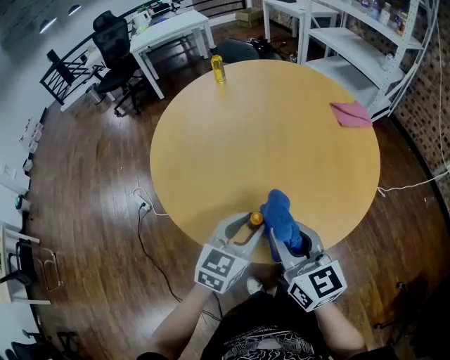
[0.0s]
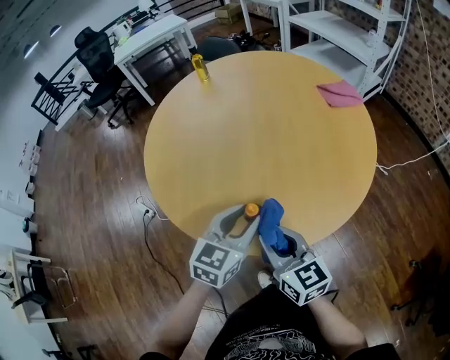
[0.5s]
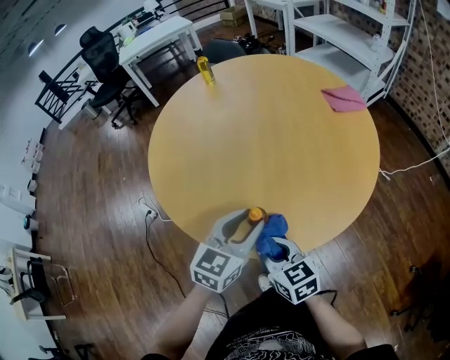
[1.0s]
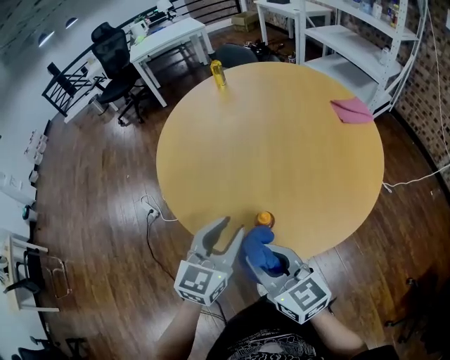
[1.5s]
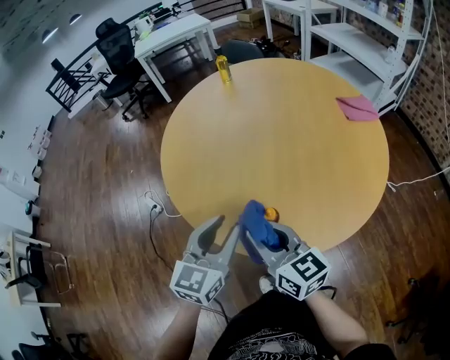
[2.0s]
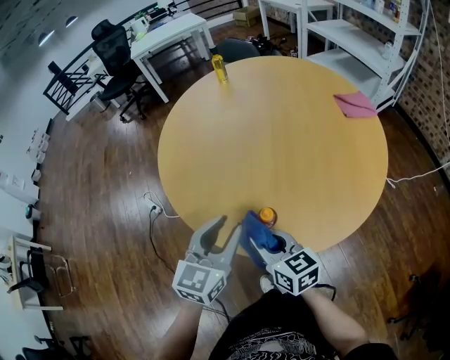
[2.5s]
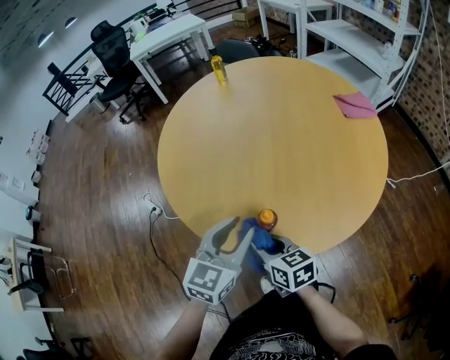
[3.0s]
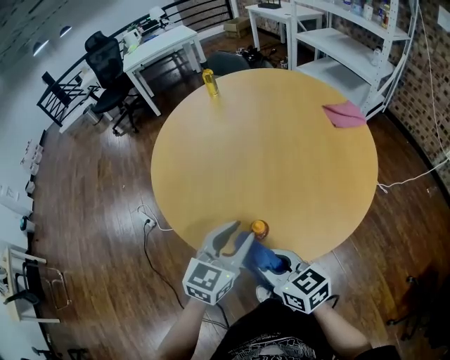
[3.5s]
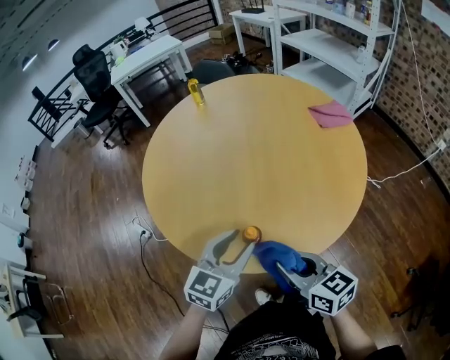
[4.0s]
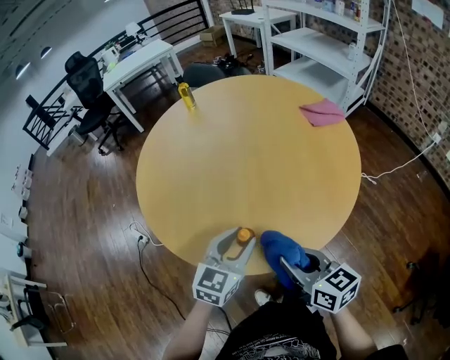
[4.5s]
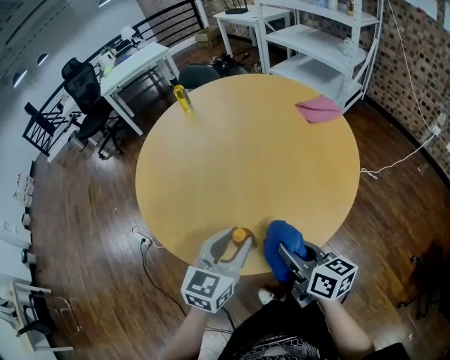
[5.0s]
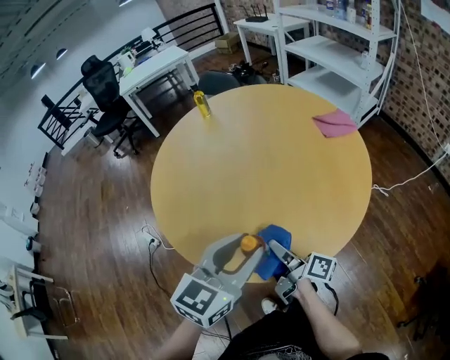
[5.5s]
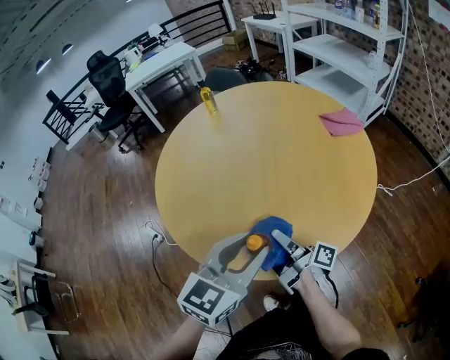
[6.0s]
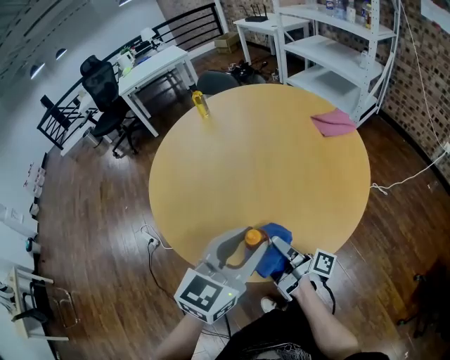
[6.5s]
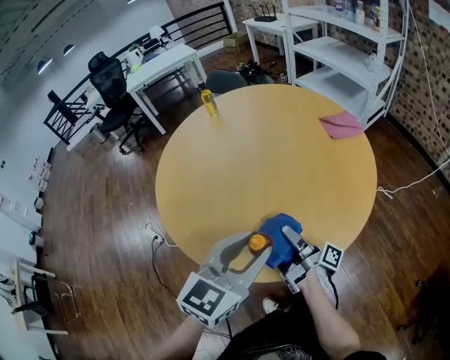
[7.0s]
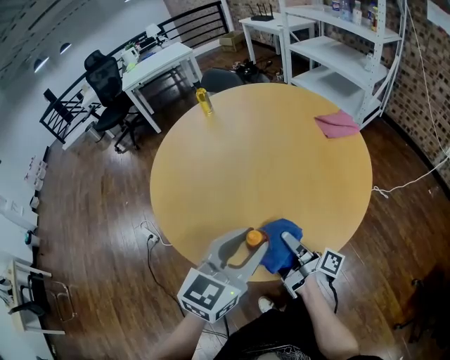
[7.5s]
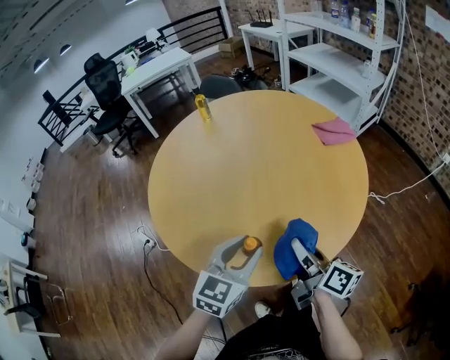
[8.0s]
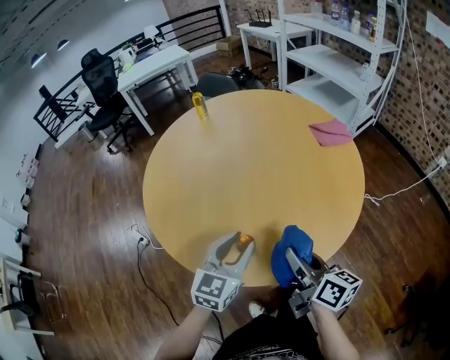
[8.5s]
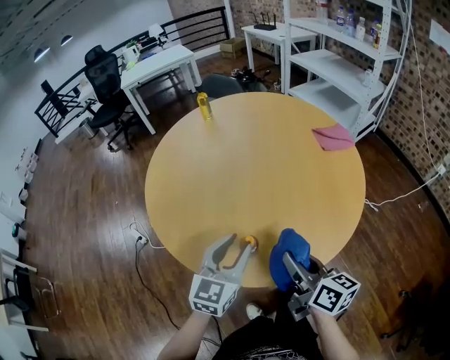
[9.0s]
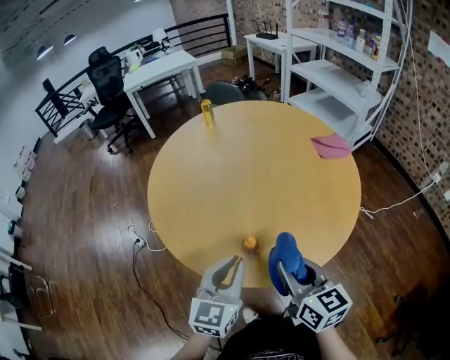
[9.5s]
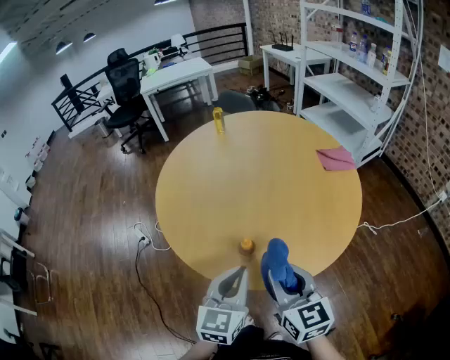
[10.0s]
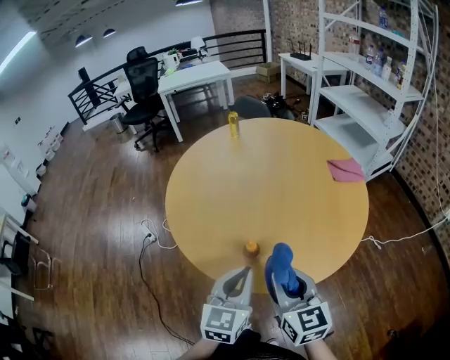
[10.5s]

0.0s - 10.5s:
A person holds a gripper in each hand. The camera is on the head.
0.0s - 2.0s: Both grippers travel together to the left, about 10 cm. The right gripper goes downward and returns, roughly 15 cm each way.
2.0s - 4.0s: The left gripper heads to the right, covering about 10 cm; the right gripper moves to the right and backward, about 10 cm, and reaches approximately 10 cm downward, then returns.
4.0s - 6.5s: The left gripper travels upward by approximately 10 cm. Meanwhile the right gripper moves forward and downward, approximately 10 cm, and rotates around the line of its fingers by some 70 degrees, clockwise from behind.
6.5s - 8.5s: The right gripper goes roughly 10 cm upward and to the right, and twists roughly 50 degrees counterclockwise, seen from behind. Meanwhile the left gripper shifts approximately 10 cm downward.
8.5s - 10.5s: The left gripper shifts about 10 cm backward, and closes up, while the right gripper shifts approximately 5 cm upward, and rolls counterclockwise, seen from behind, by about 40 degrees.

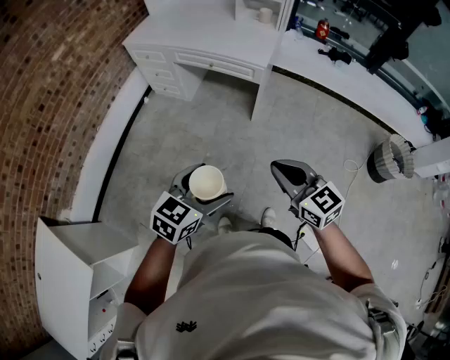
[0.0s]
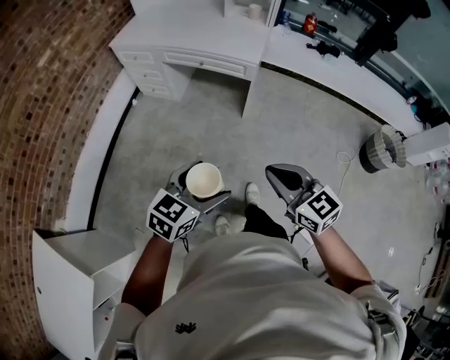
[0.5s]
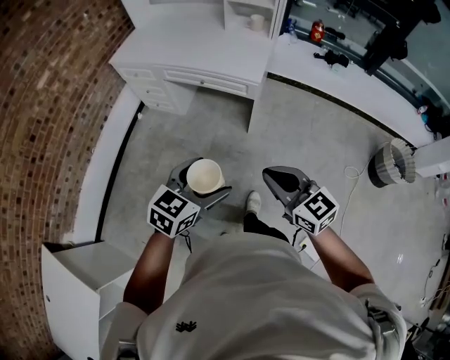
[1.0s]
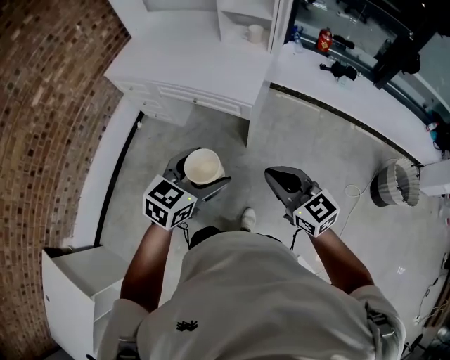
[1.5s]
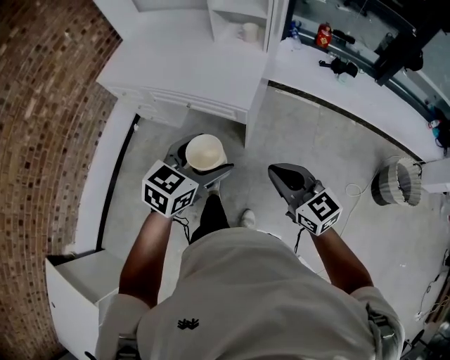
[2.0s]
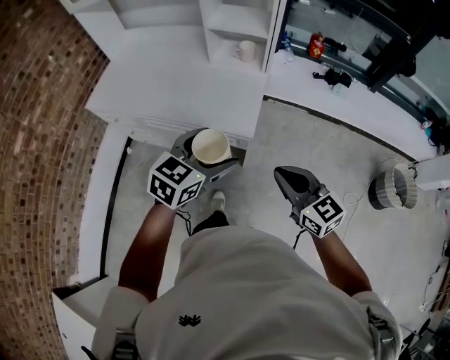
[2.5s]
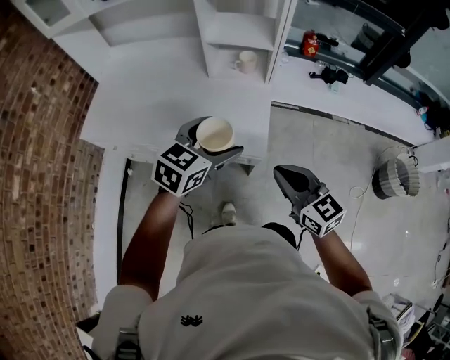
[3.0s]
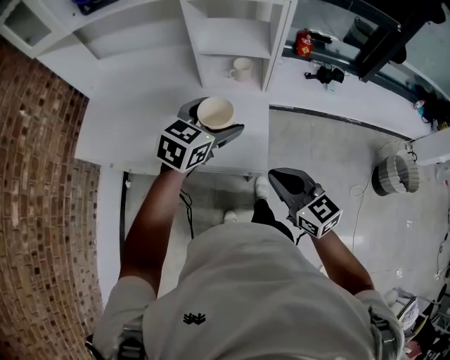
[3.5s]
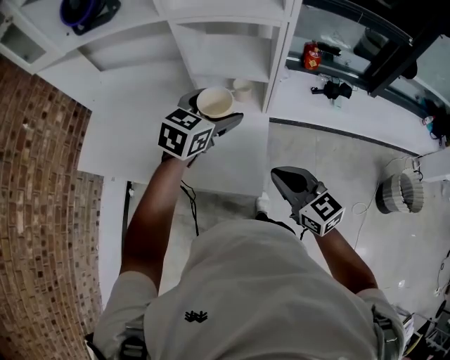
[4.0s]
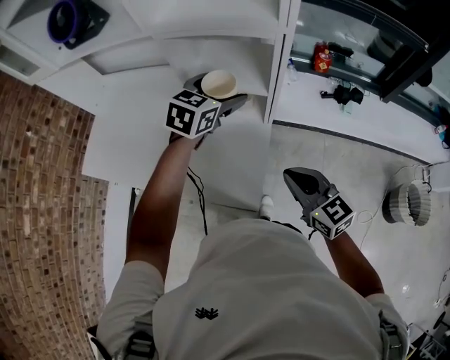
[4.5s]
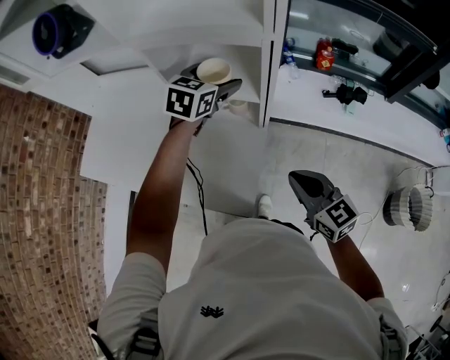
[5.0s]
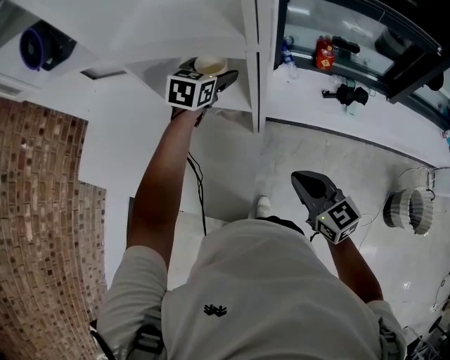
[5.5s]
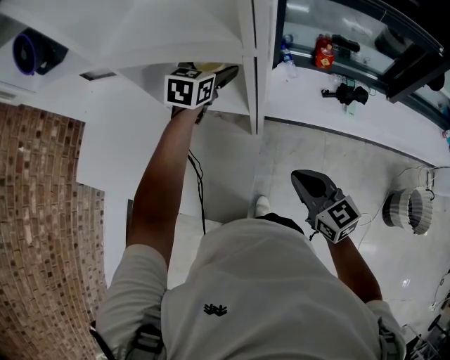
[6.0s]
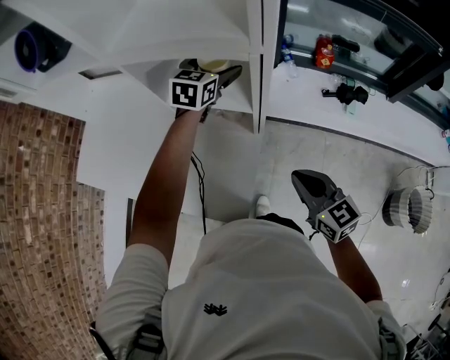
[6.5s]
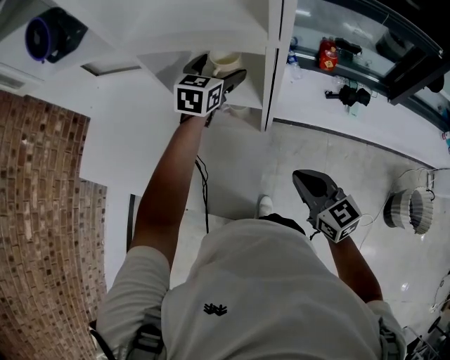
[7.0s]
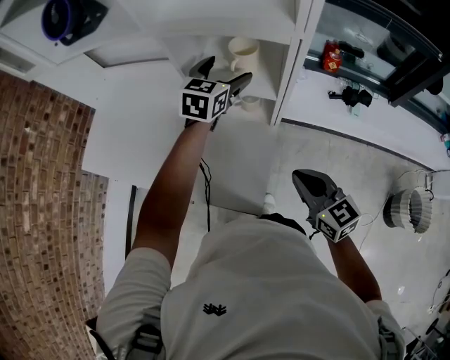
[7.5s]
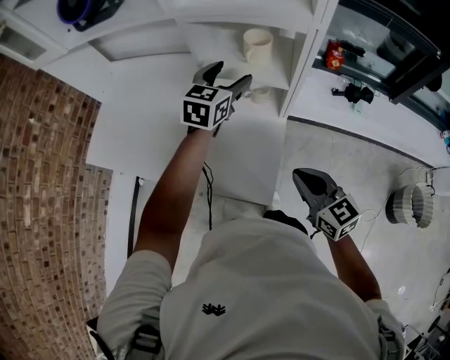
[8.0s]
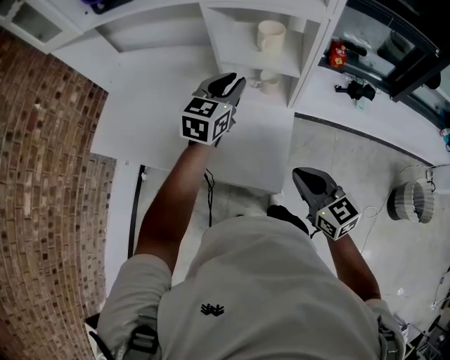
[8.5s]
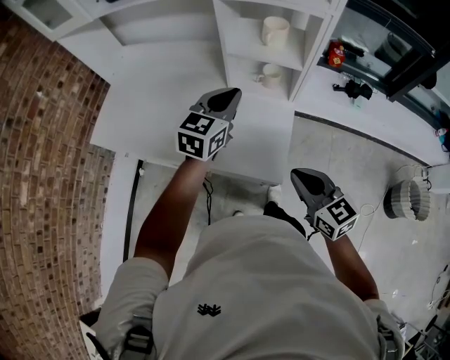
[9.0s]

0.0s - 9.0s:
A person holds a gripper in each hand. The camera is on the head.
0.0s - 2.0s: The two grippers go about 35 cm forward.
2.0s - 4.5s: The pair of grippers is taken forward, about 50 cm.
4.5s - 7.0s: The right gripper goes about 10 cm to the right and forward, while the left gripper travels forward by about 15 cm.
7.0s - 9.0s: The left gripper moves backward and to the left, about 30 cm, and closes up, while the right gripper is displaced to the left and backward by approximately 20 cm.

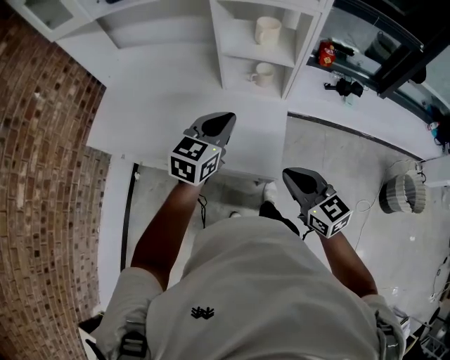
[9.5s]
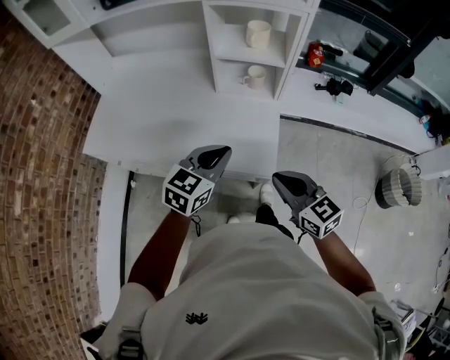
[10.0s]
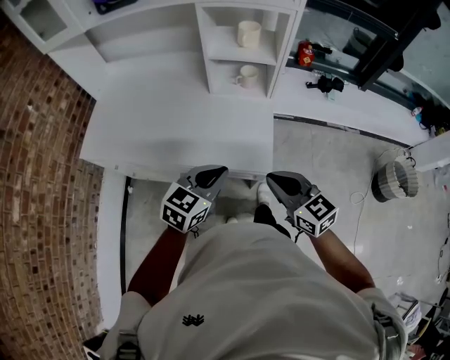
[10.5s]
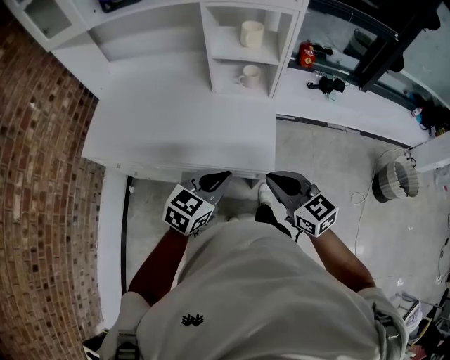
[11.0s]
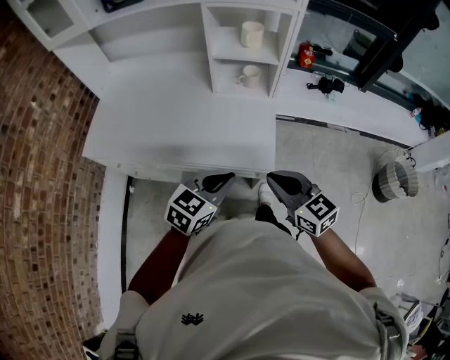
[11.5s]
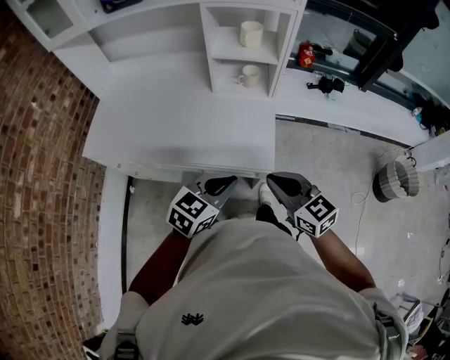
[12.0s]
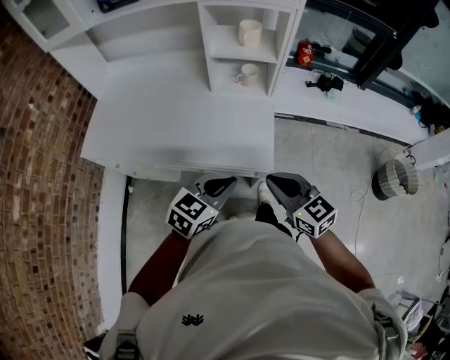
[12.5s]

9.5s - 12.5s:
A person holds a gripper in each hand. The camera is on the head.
9.5s - 11.0s: The left gripper is displaced backward by some 20 cm. The right gripper travels backward by approximately 5 cm.
11.0s - 12.5s: The grippers stay close to where they were, moving slightly.

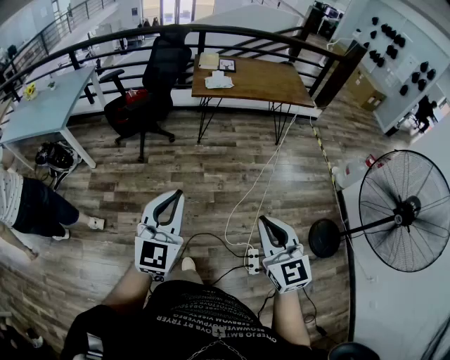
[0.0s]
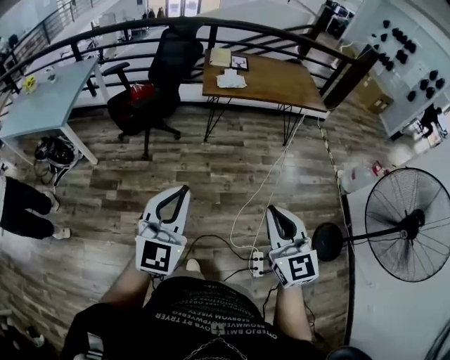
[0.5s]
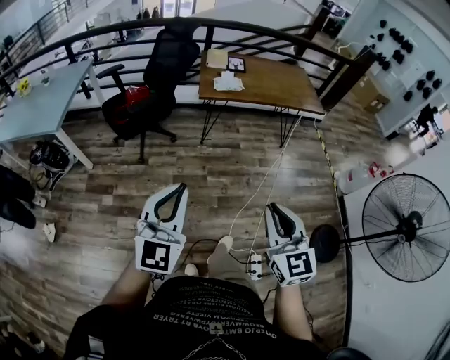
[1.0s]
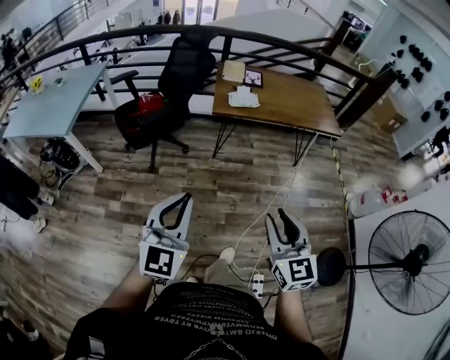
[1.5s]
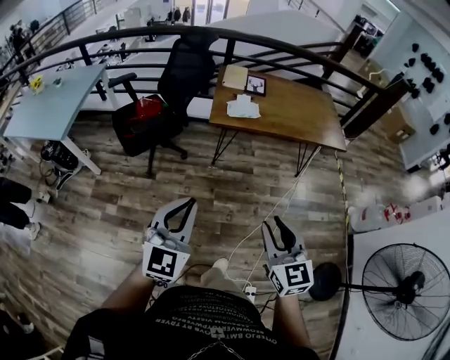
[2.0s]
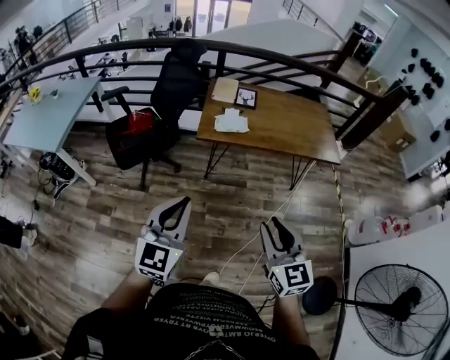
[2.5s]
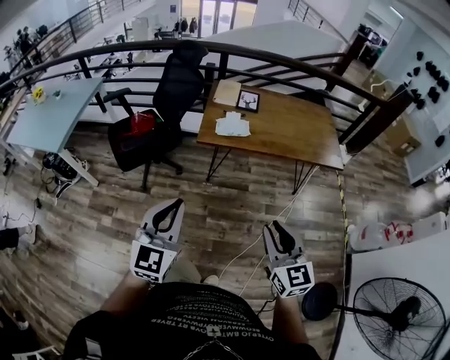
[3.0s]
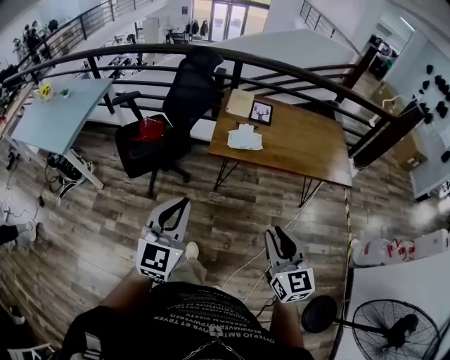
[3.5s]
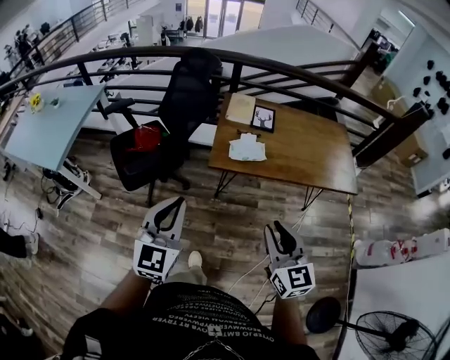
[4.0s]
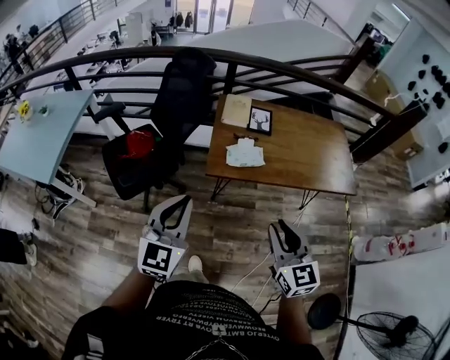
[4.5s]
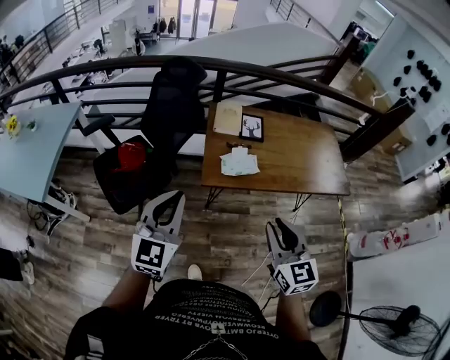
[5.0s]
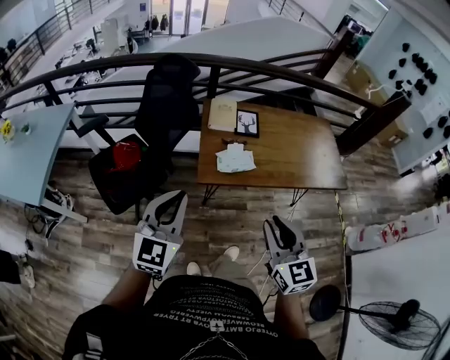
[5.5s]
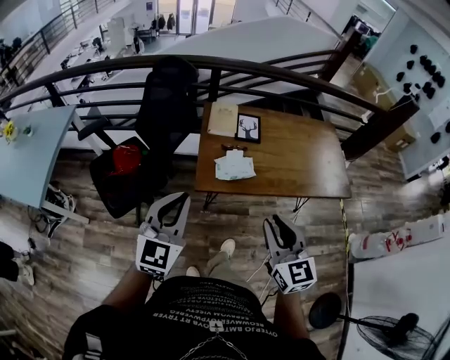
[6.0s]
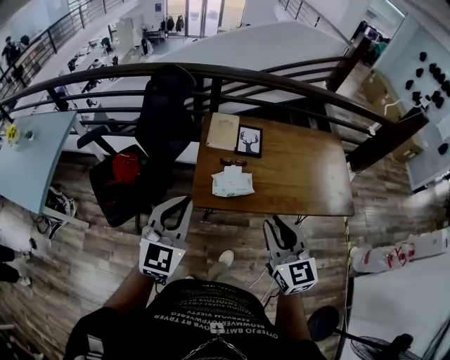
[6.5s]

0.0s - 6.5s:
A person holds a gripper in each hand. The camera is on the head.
0.0s - 2.0s: The grippers both shift forward by about 30 cm. The right gripper opens.
2.0s - 4.5s: The grippers both shift forward by about 30 cm.
4.5s - 6.5s: The two grippers go about 15 cm forward.
